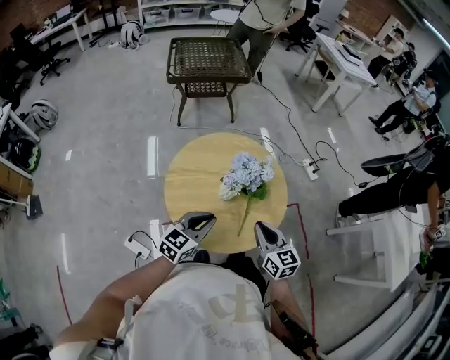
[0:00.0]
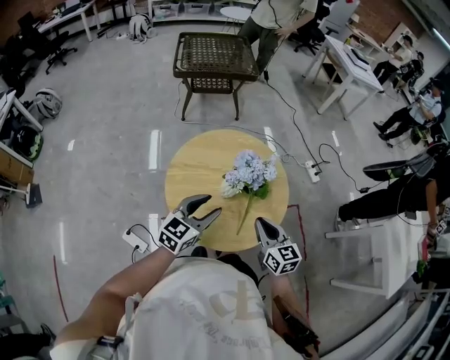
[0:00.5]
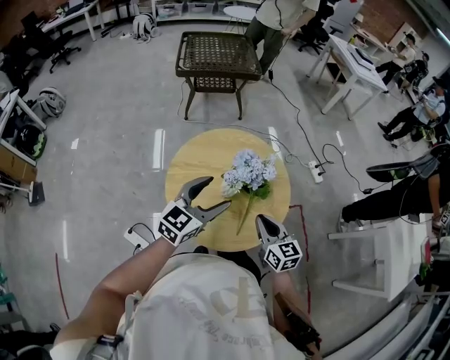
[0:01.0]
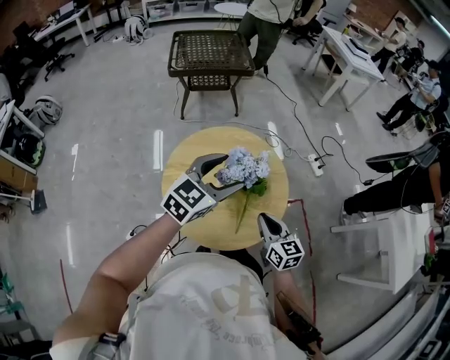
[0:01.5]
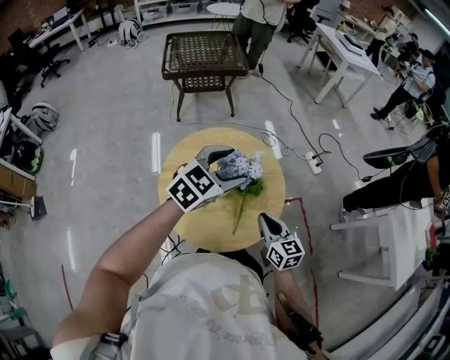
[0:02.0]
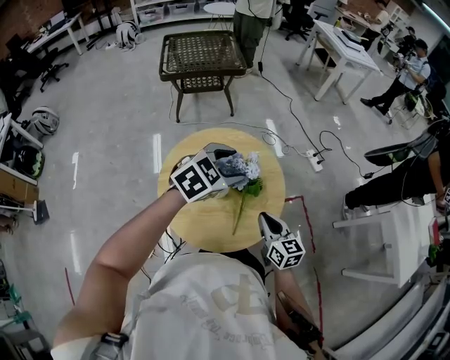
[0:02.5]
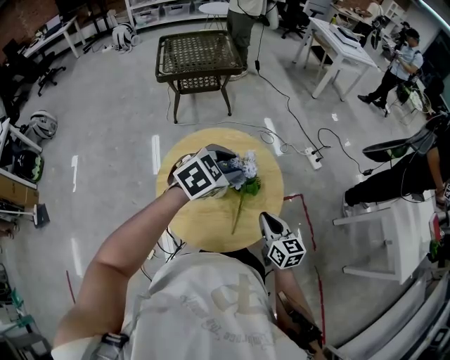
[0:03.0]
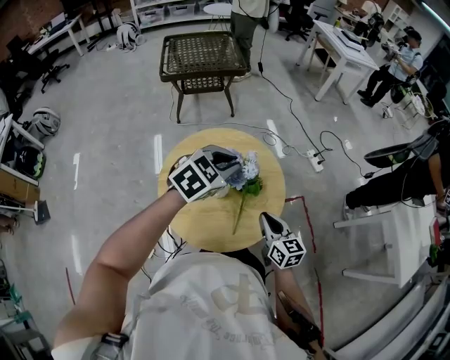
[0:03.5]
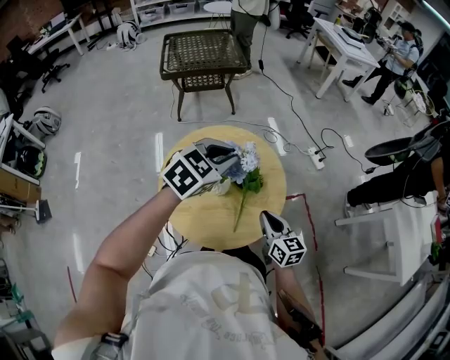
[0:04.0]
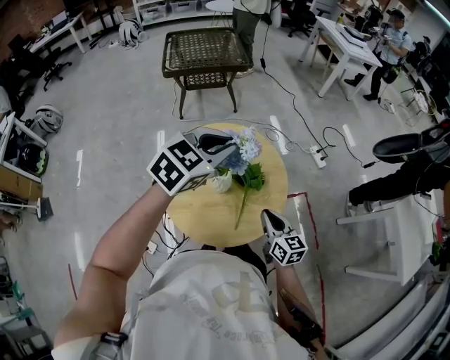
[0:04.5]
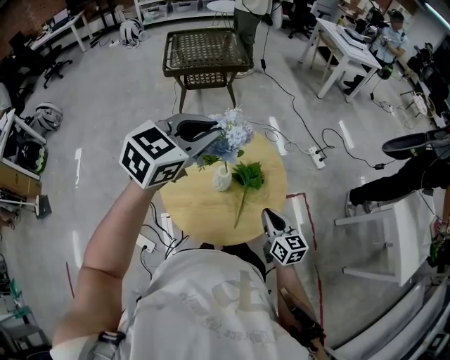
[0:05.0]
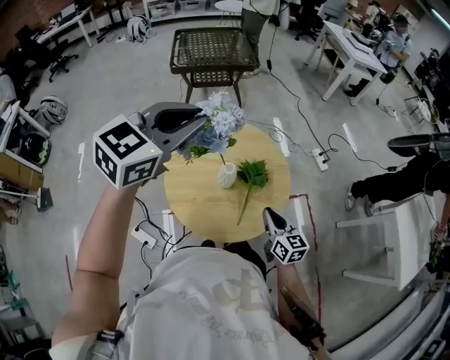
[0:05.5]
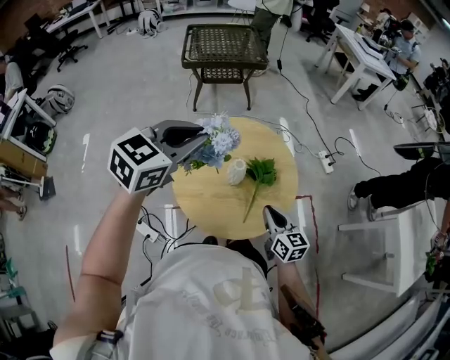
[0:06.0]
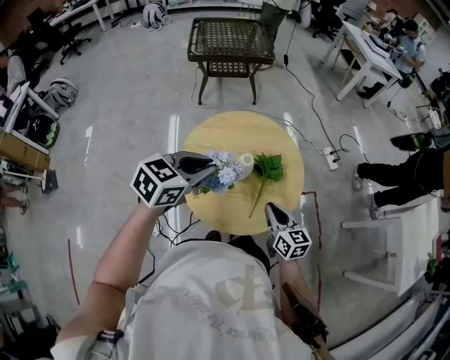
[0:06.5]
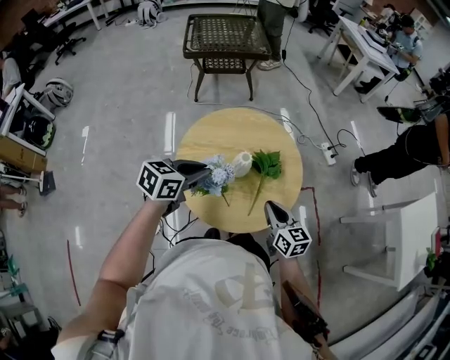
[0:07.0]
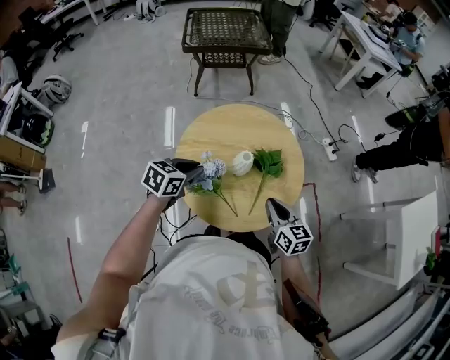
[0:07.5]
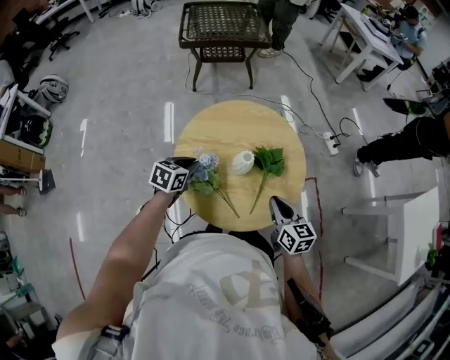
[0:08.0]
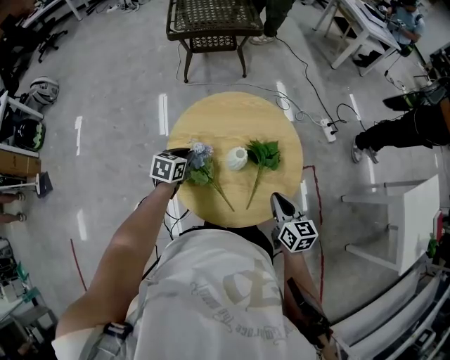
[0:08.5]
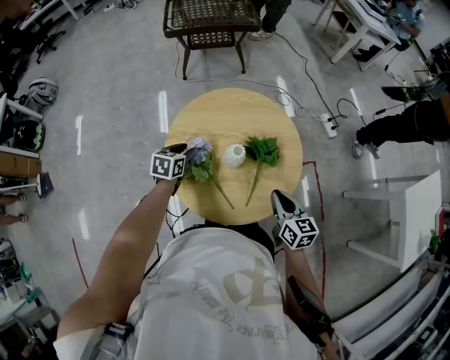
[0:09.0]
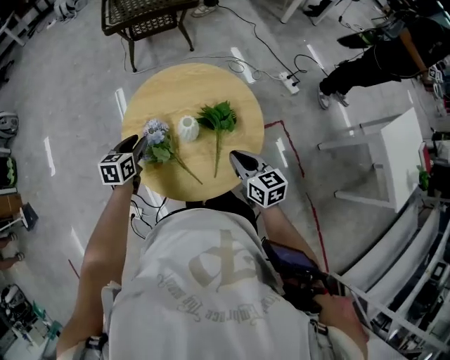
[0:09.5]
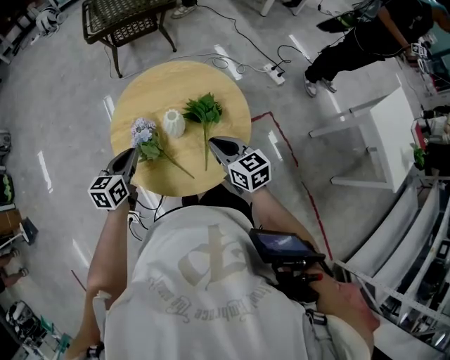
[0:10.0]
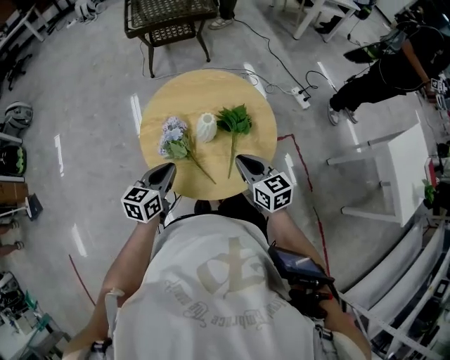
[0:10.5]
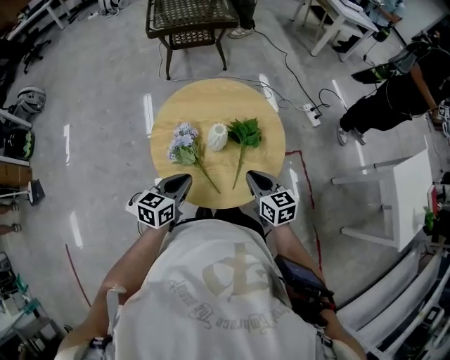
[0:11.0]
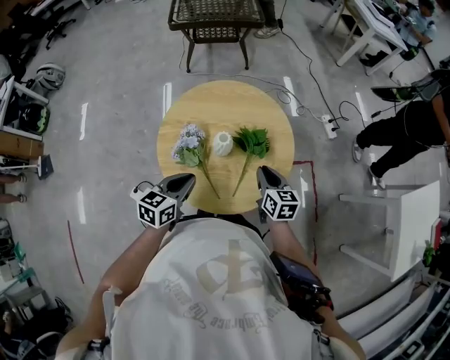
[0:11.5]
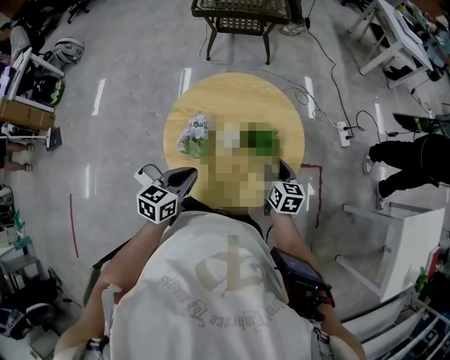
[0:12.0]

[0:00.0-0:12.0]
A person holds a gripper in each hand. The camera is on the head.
0:00.0 to 0:02.0: The right gripper shifts by roughly 5 cm, while the left gripper moves upward, forward and to the right, some 20 cm, rotates some 20 degrees, and opens.
0:02.0 to 0:04.0: The left gripper closes its fingers.
0:04.0 to 0:06.0: The left gripper goes approximately 15 cm to the left, upward and backward.
0:06.0 to 0:08.0: The left gripper is displaced downward by about 35 cm, and rotates approximately 30 degrees.
0:08.0 to 0:10.0: The left gripper moves some 5 cm.
0:10.0 to 0:12.0: The left gripper travels to the right and backward by about 10 cm. The right gripper goes approximately 10 cm forward, downward and to the right, and opens up.

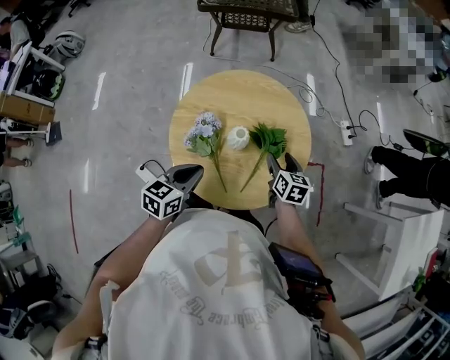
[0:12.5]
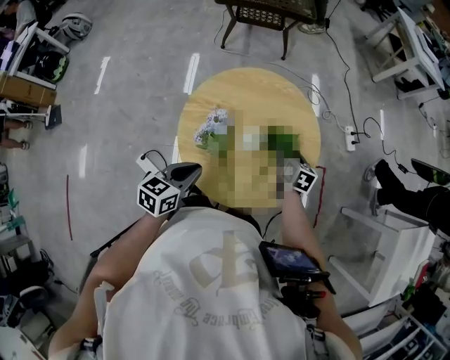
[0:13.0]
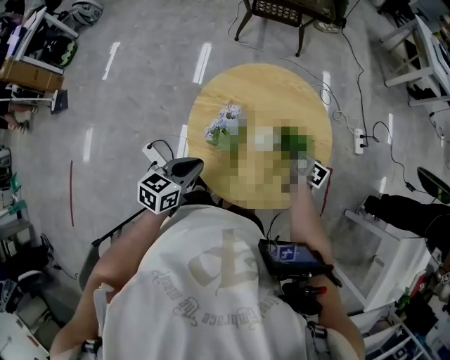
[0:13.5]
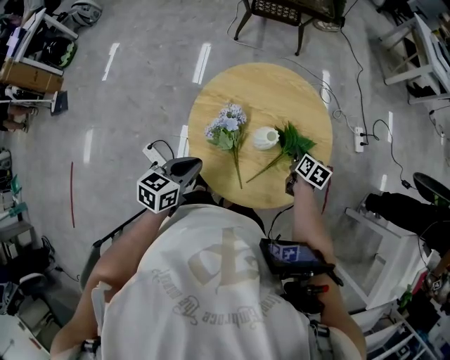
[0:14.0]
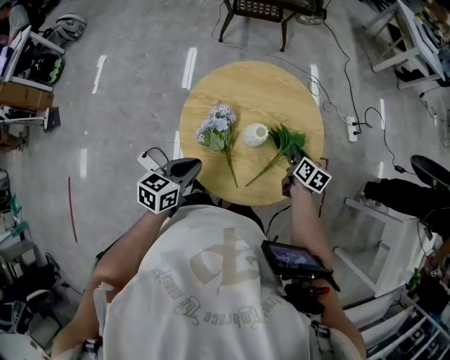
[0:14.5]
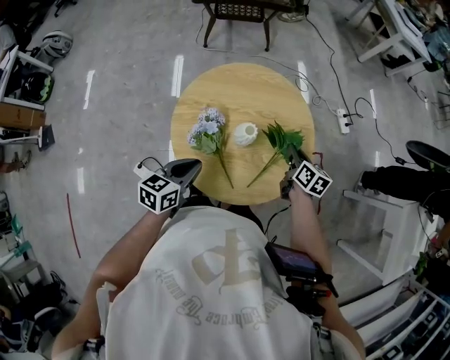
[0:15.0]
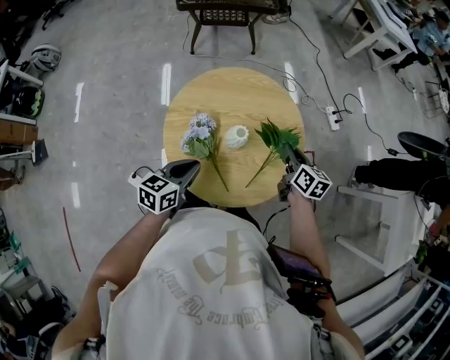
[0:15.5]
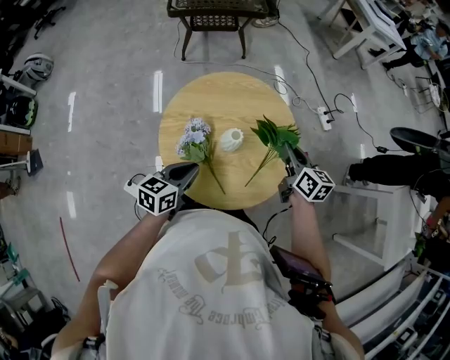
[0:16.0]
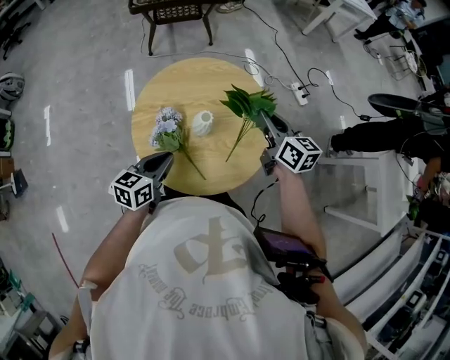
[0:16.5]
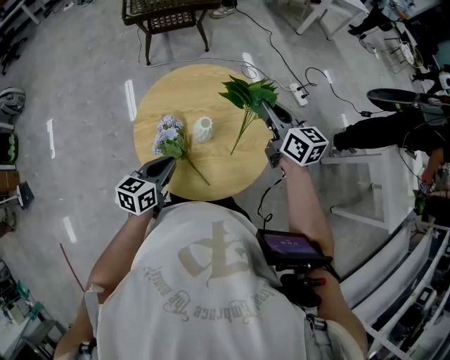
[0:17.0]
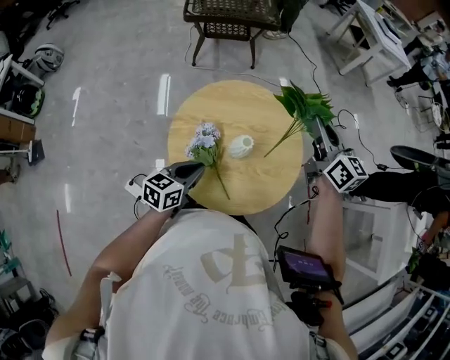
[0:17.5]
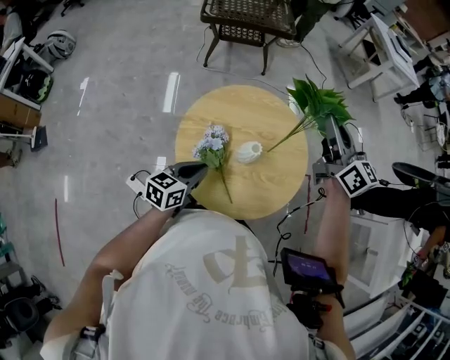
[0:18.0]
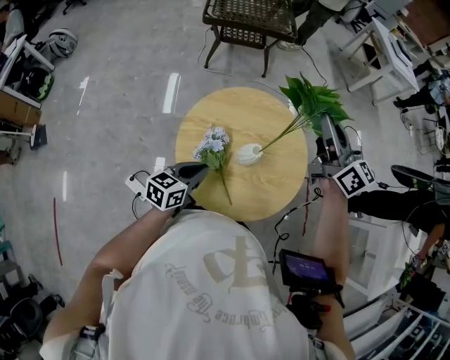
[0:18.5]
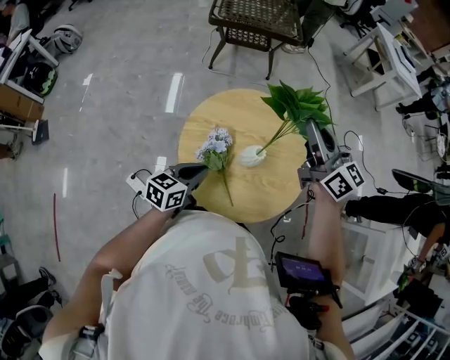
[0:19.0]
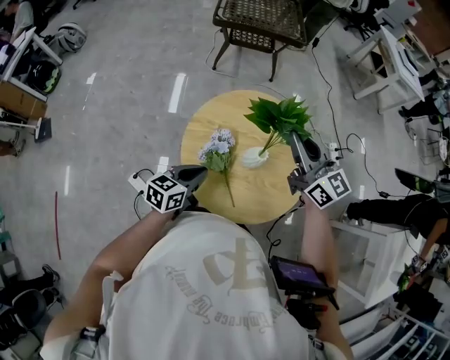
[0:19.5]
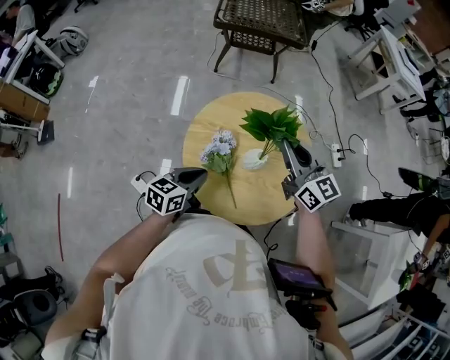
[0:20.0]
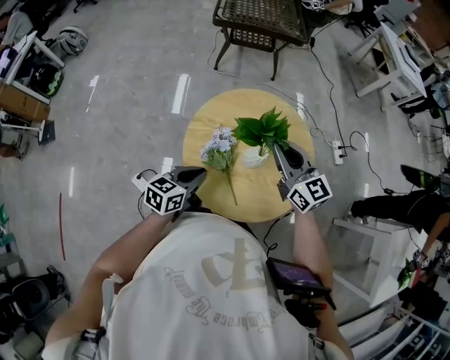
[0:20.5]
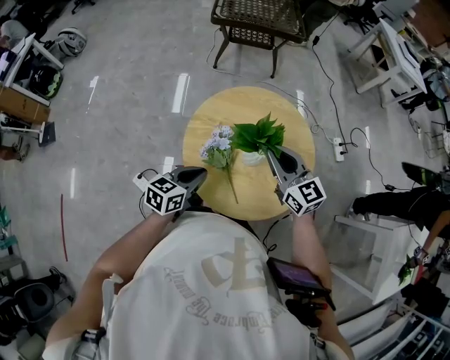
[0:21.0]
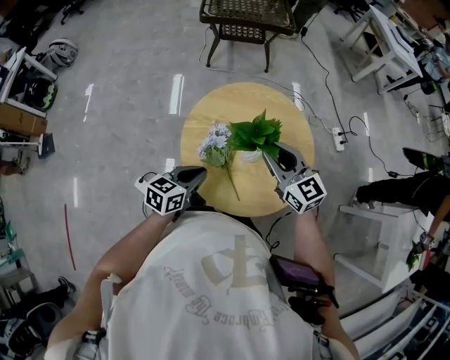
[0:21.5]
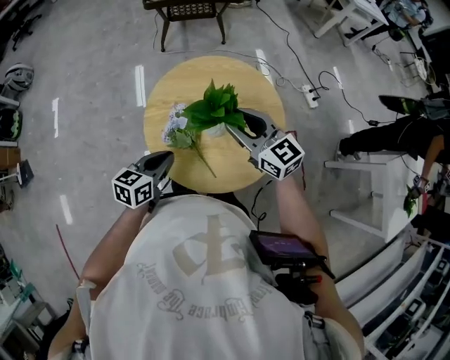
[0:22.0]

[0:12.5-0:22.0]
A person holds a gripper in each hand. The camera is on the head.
0:12.5 to 0:14.5: The left gripper travels to the left by roughly 5 cm, while the right gripper closes up.
0:14.5 to 0:16.5: The right gripper is displaced upward by some 20 cm, and turns by roughly 30 degrees; the left gripper shifts by approximately 5 cm.
0:16.5 to 0:18.0: The right gripper shifts some 15 cm upward, and swivels approximately 20 degrees.
0:18.0 to 0:20.0: The right gripper is displaced to the left, downward and backward by approximately 15 cm.
0:20.0 to 0:22.0: The right gripper goes about 5 cm backward and downward, and opens up.

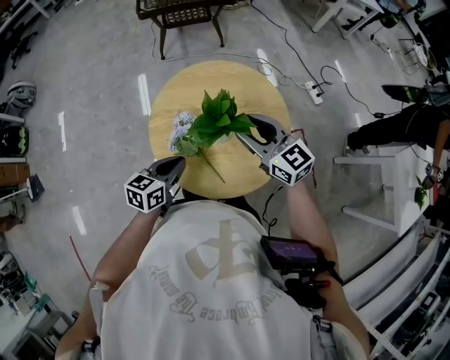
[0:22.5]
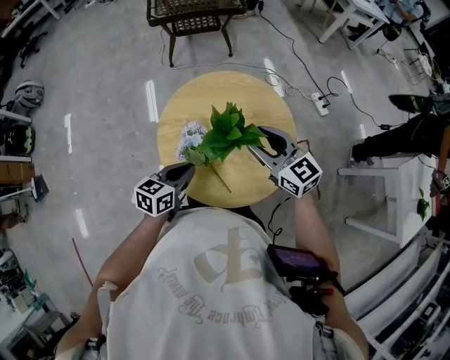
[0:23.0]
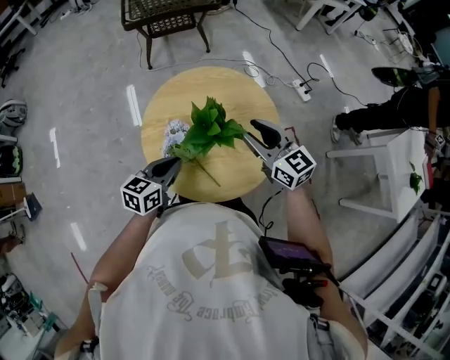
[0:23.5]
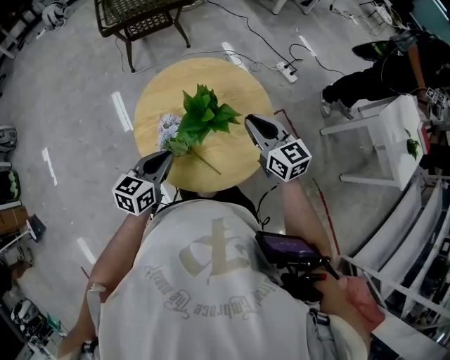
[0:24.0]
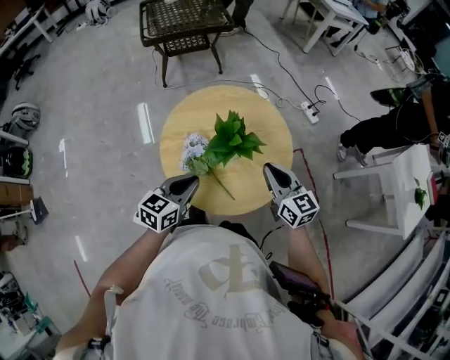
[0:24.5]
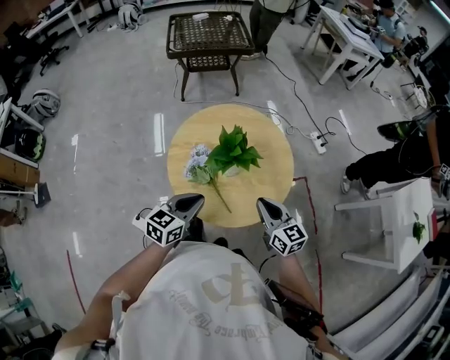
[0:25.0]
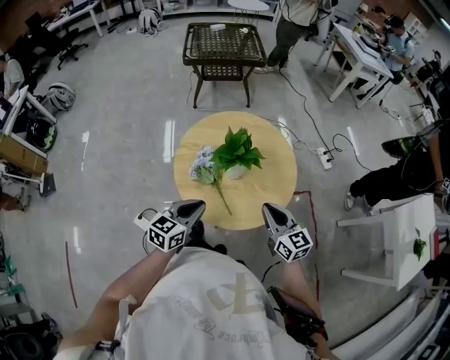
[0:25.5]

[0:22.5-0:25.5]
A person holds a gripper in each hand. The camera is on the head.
0:22.5 to 0:24.0: The right gripper goes about 5 cm to the right, swivels some 20 degrees, and closes.
0:24.0 to 0:25.5: The right gripper heads backward, covering some 10 cm. The left gripper is displaced backward and to the right by some 10 cm.

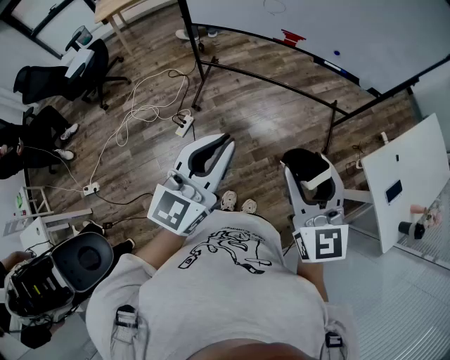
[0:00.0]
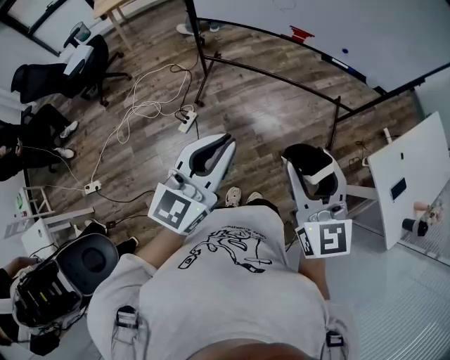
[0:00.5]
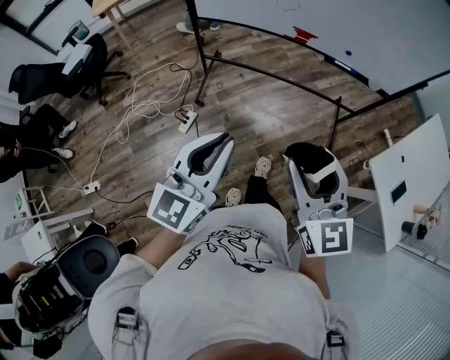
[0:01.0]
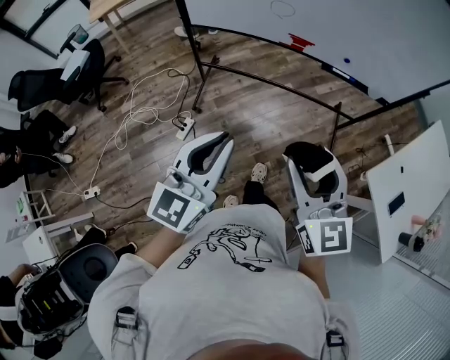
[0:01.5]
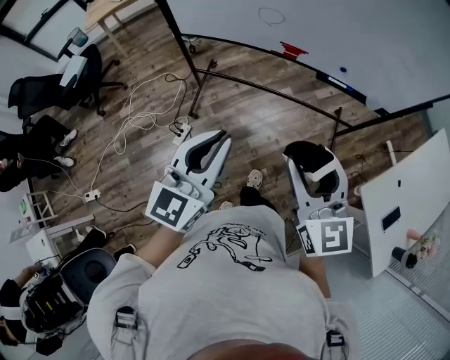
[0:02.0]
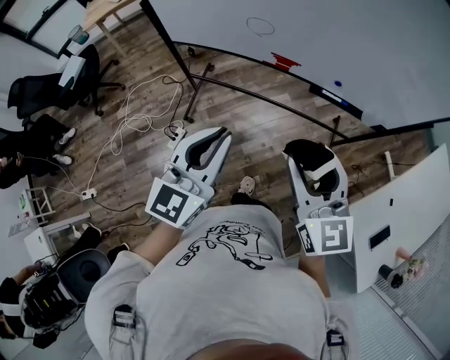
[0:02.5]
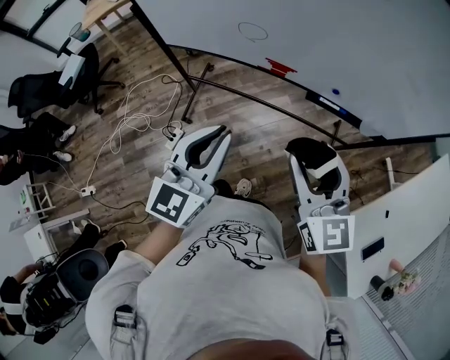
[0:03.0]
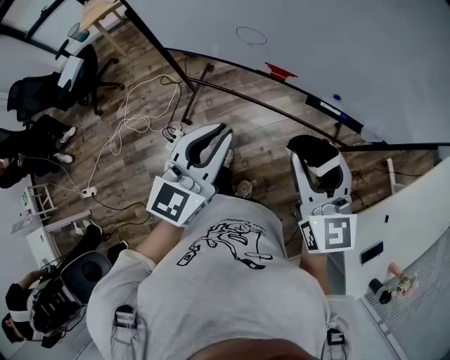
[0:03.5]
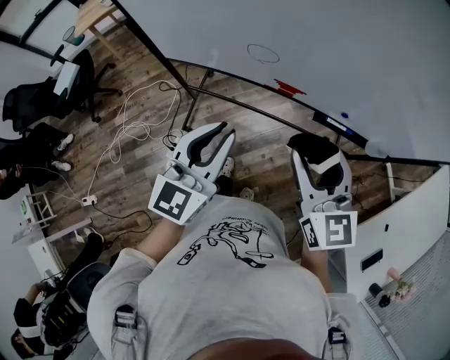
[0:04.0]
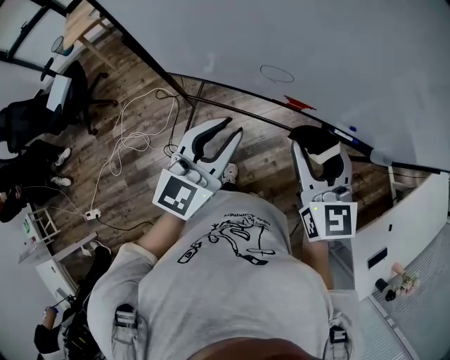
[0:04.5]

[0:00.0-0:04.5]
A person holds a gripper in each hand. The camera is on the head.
0:00.0 to 0:02.0: Both grippers travel together forward, some 20 cm.
0:02.0 to 0:04.5: The two grippers go approximately 30 cm forward.
